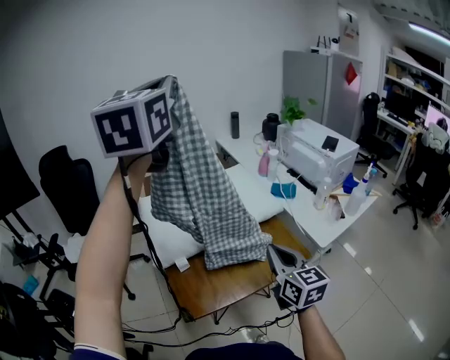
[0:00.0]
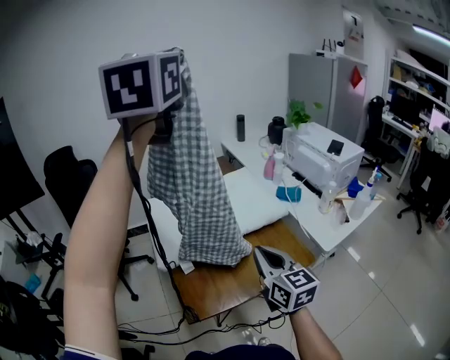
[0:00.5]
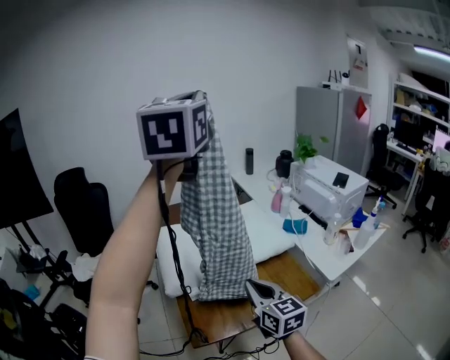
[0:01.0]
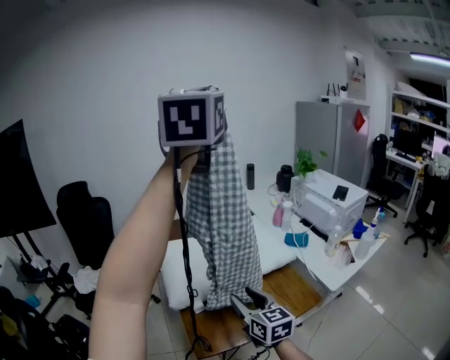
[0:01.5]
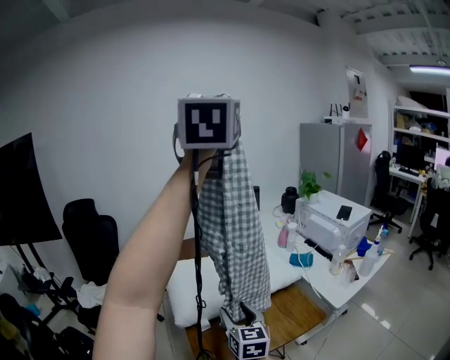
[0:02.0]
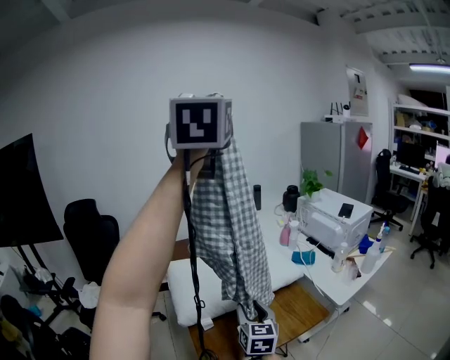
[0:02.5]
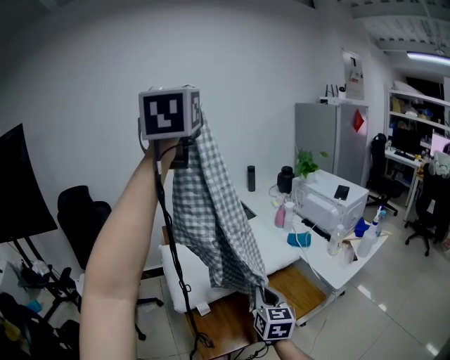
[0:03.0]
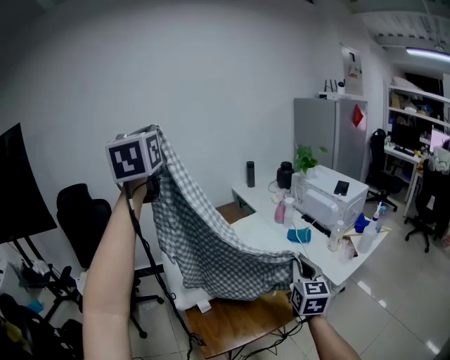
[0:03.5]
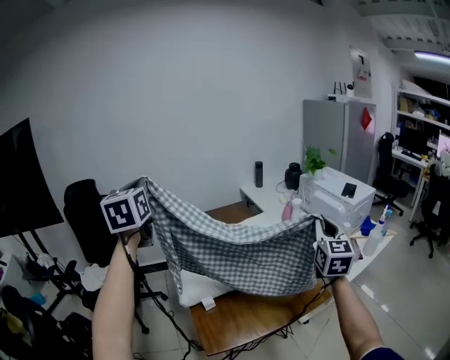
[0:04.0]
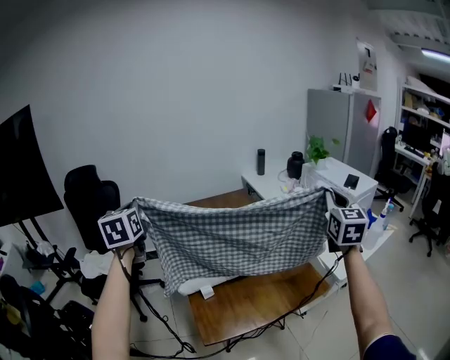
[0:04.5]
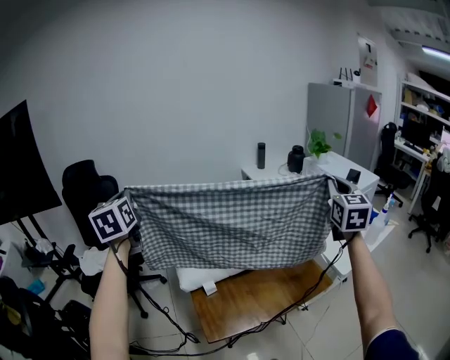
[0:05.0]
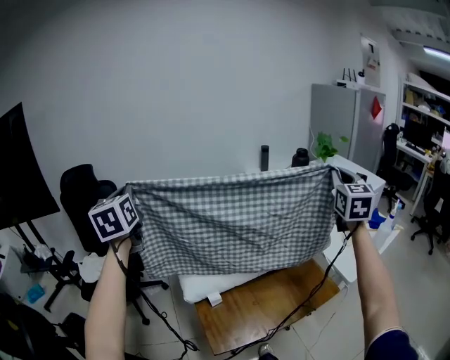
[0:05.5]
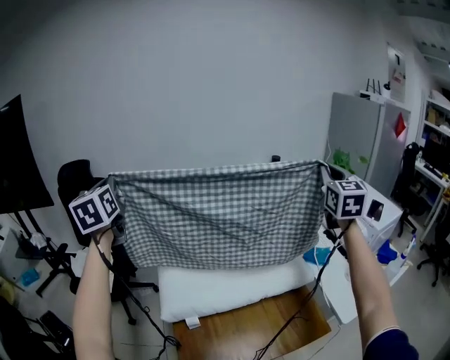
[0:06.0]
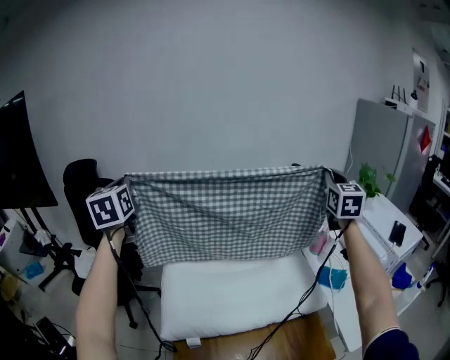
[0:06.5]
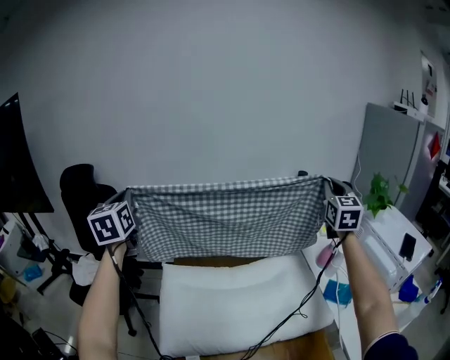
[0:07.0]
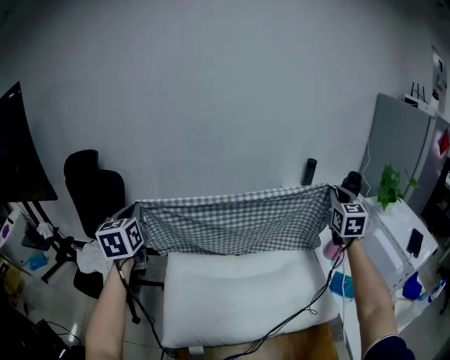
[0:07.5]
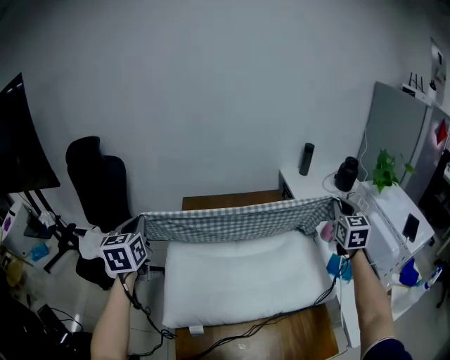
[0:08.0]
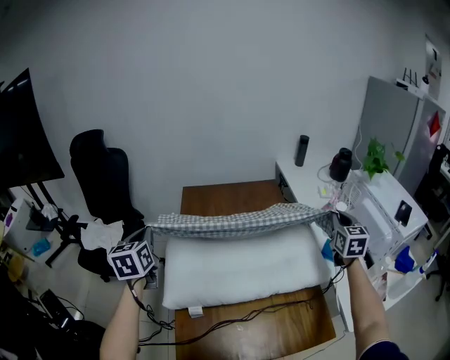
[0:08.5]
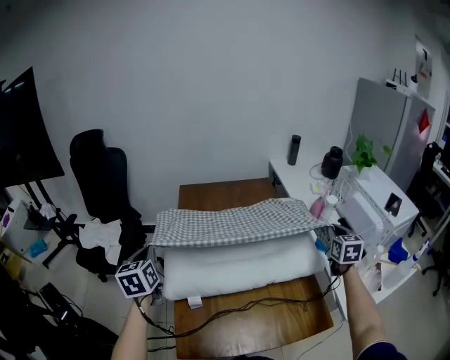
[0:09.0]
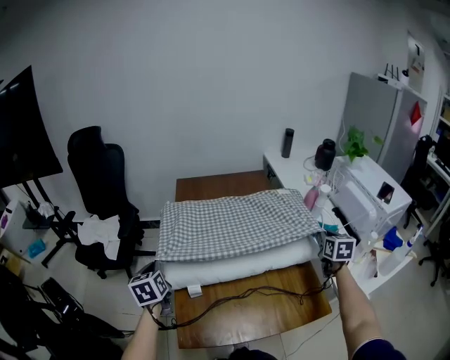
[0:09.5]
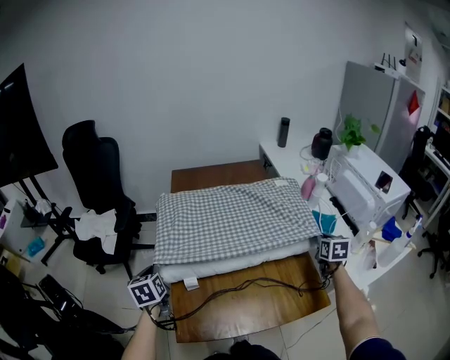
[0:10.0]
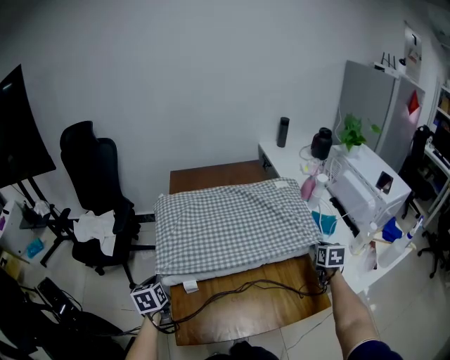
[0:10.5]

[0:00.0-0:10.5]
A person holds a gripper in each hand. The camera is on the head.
0:00.0 to 0:02.0: The left gripper travels upward by about 15 cm. Meanwhile the right gripper shifts about 15 cm to the left, and opens its fingers.
0:02.0 to 0:04.0: The left gripper moves to the left and downward, roughly 40 cm, and changes its angle by about 30 degrees. Meanwhile the right gripper is displaced to the right and upward by roughly 30 cm, changes its angle by about 30 degrees, and closes up.
0:04.0 to 0:06.5: The left gripper travels forward and to the left by approximately 25 cm. The right gripper is displaced forward by about 40 cm.
0:06.5 to 0:08.5: The grippers both shift downward and backward by some 25 cm.
0:08.5 to 0:10.5: The two grippers go some 25 cm downward and backward. The left gripper changes its angle by roughly 20 degrees. Meanwhile the right gripper swivels some 30 degrees.

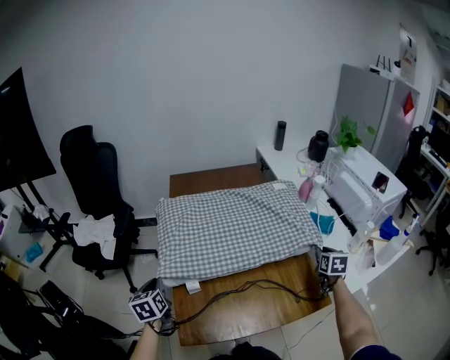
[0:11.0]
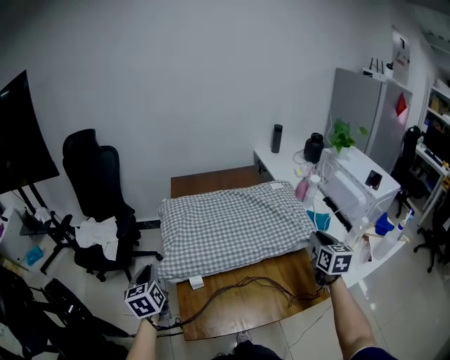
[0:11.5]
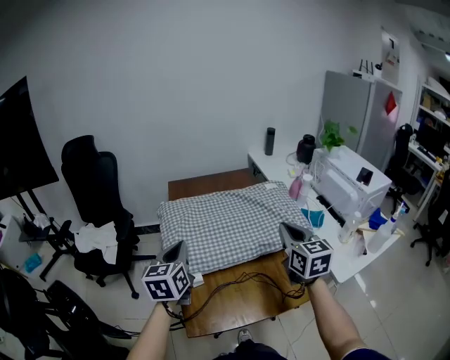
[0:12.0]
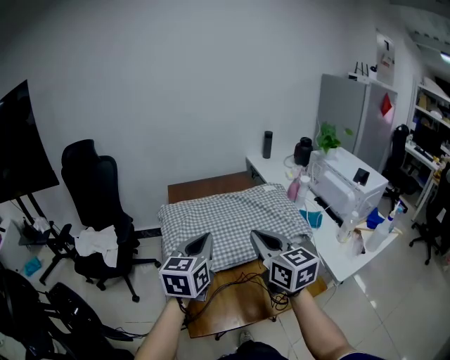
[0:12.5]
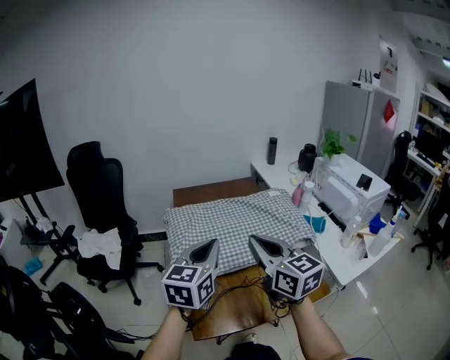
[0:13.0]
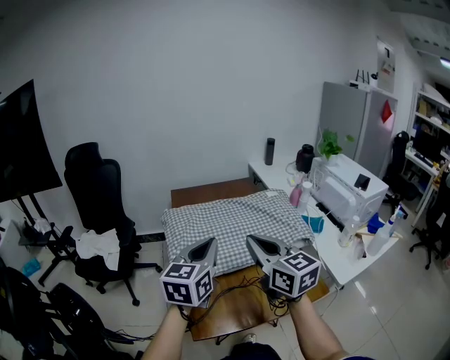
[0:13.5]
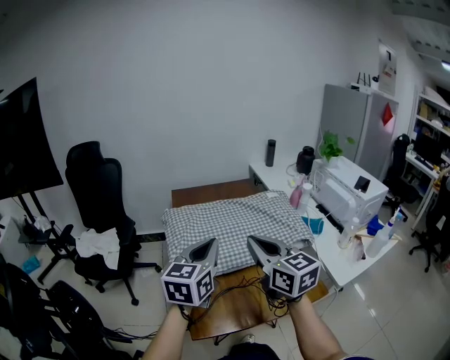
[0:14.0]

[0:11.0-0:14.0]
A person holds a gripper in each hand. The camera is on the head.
0:11.0 to 0:12.5: The right gripper moves to the left and upward, some 40 cm, points its fingers about 30 degrees further upward, and closes its fingers. The left gripper travels upward and to the right by roughly 30 cm, and changes its angle by approximately 40 degrees.
0:12.5 to 0:14.0: There are only small adjustments of the grippers.

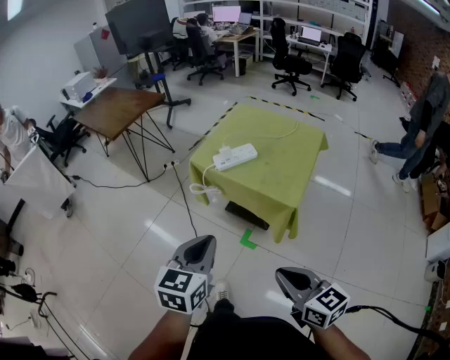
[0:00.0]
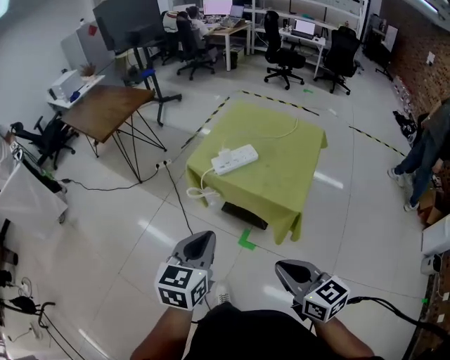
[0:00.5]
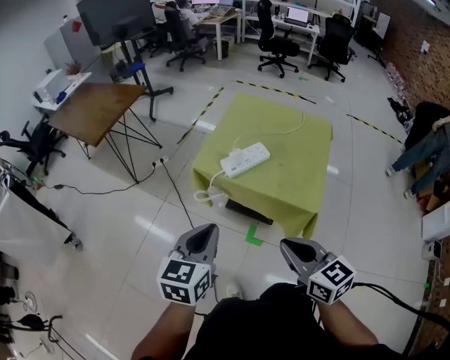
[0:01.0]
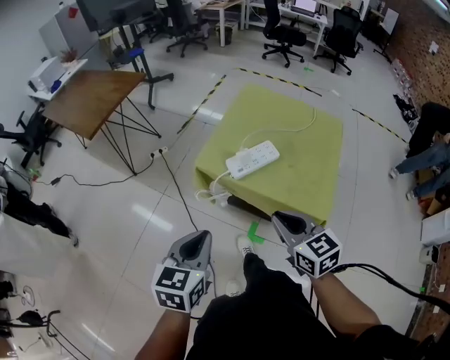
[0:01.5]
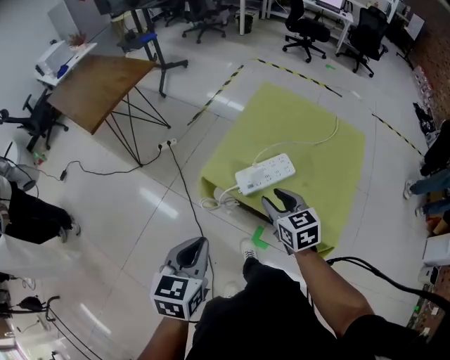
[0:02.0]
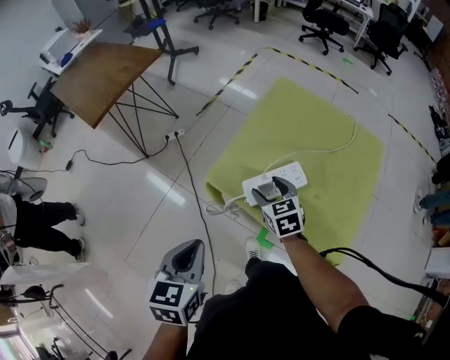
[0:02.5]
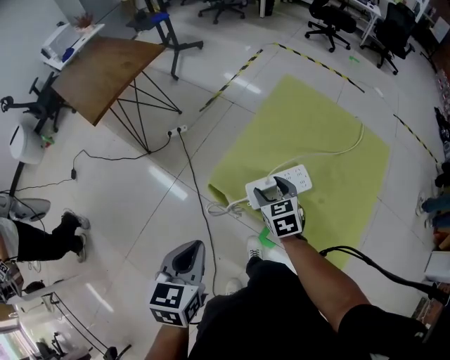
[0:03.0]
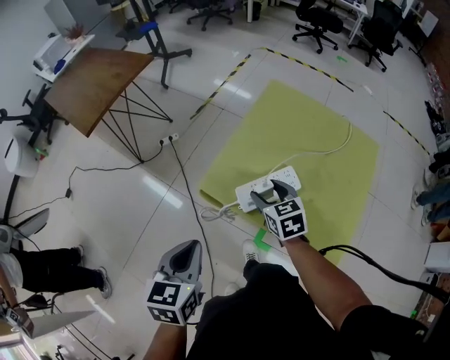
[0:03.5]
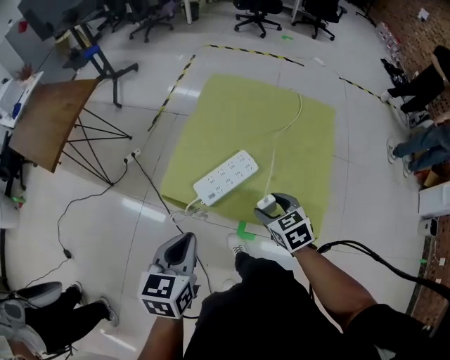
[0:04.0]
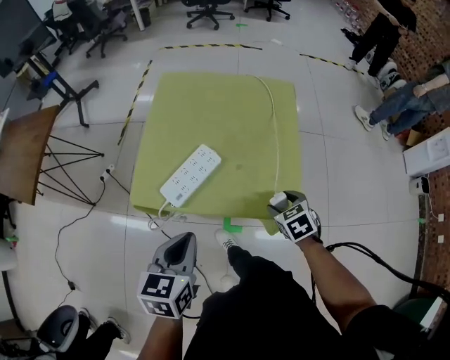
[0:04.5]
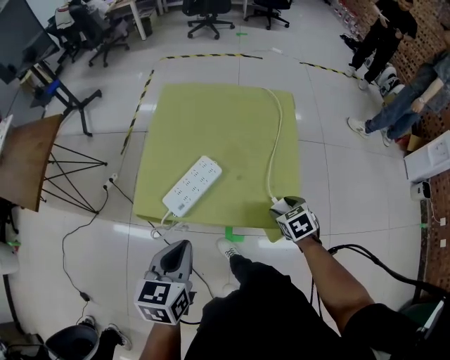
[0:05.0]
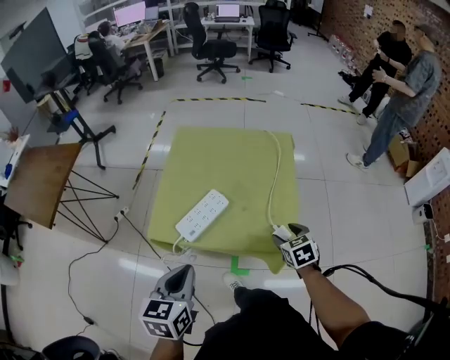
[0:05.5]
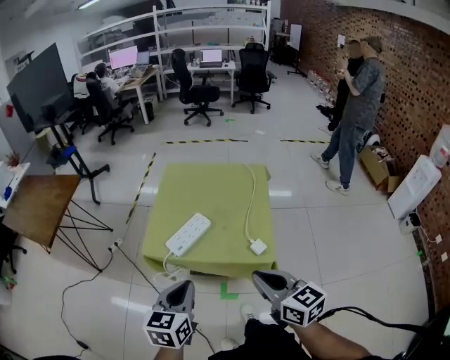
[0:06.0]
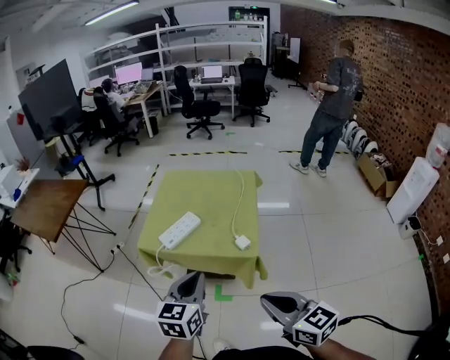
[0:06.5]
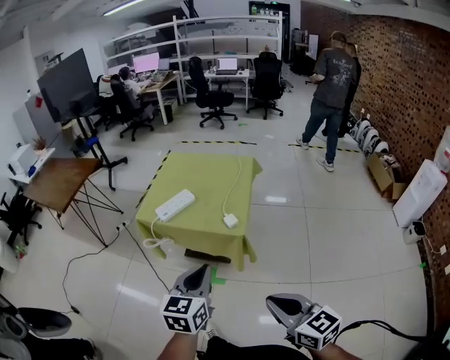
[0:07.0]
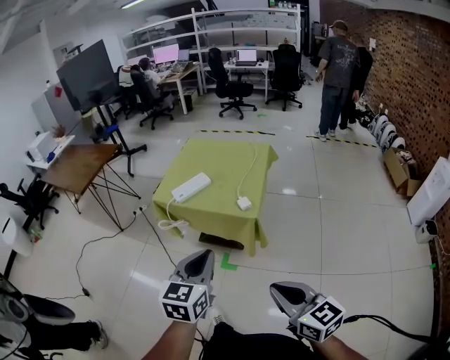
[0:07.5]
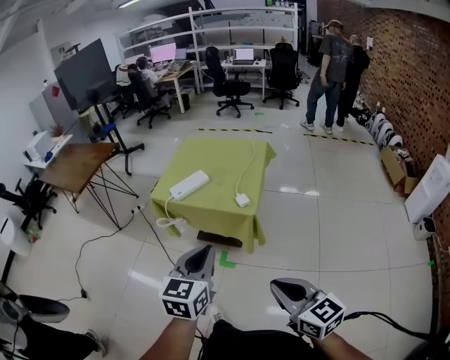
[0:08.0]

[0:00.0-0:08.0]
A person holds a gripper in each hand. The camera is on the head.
0:00.0 to 0:02.0: The left gripper travels forward and to the left by approximately 30 cm, while the right gripper heads forward, covering some 50 cm, and opens up.
0:02.0 to 0:04.0: The right gripper travels to the right and downward by about 10 cm, and opens; the left gripper heads forward and to the right, covering some 10 cm.
0:04.0 to 0:06.0: The right gripper moves upward and backward, some 30 cm, angles its fingers upward, by about 30 degrees, and closes its fingers. Meanwhile the left gripper moves to the right, backward and upward, some 15 cm.
0:06.0 to 0:08.0: The left gripper heads backward and to the right, covering some 30 cm; the right gripper goes roughly 30 cm backward.

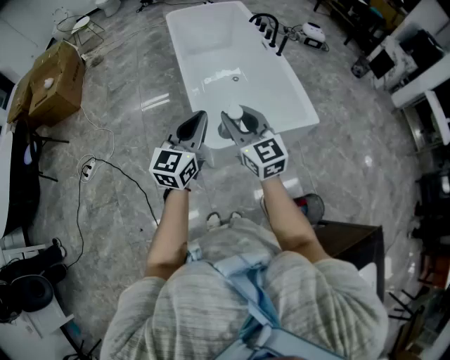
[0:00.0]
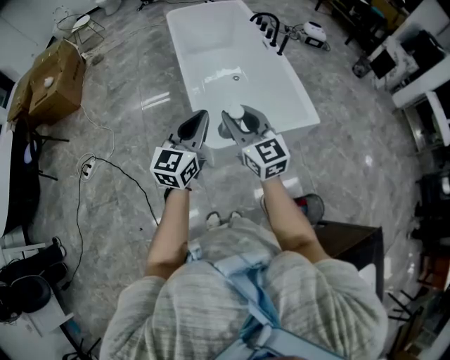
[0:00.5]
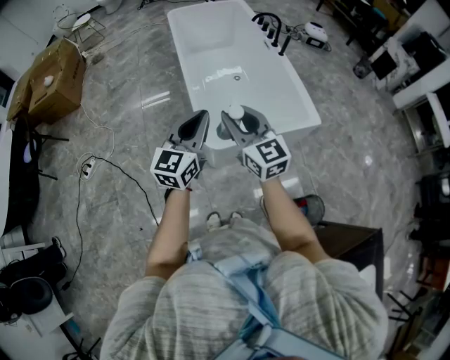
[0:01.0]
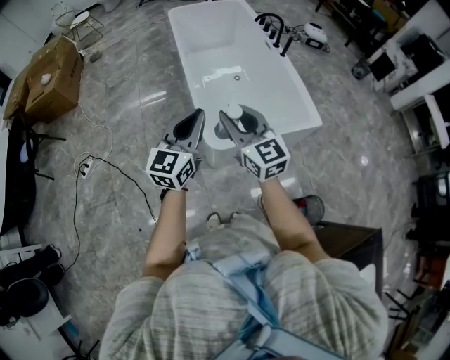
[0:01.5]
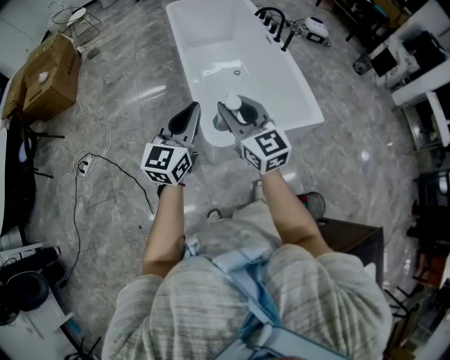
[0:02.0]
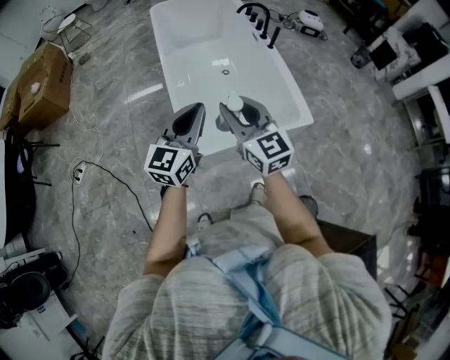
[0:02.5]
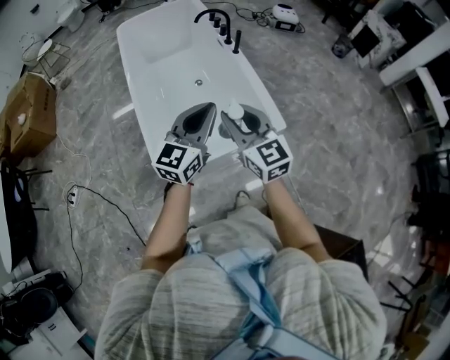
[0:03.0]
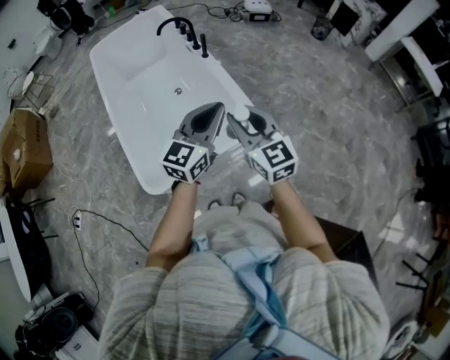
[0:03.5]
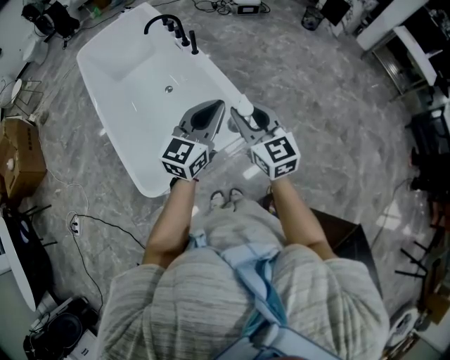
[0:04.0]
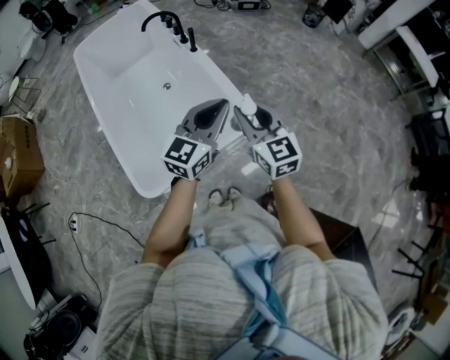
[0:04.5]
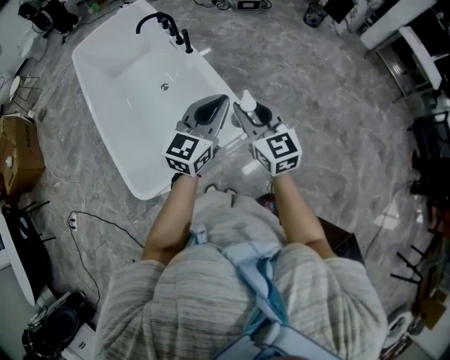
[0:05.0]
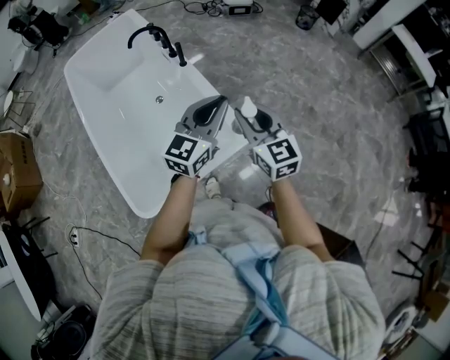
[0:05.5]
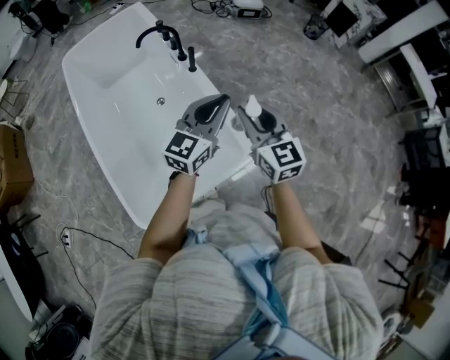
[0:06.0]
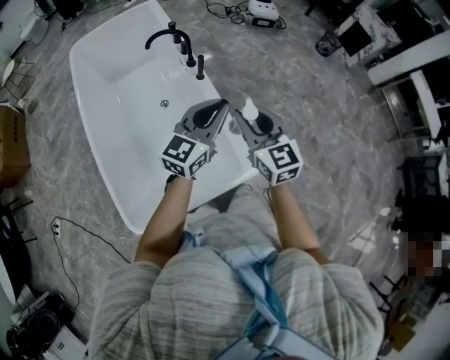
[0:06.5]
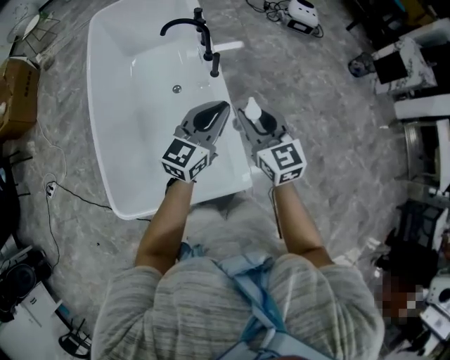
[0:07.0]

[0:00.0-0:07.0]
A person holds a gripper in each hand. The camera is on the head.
0:00.0 to 0:02.0: The right gripper moves roughly 5 cm. The left gripper moves roughly 5 cm.
0:02.0 to 0:03.5: The two grippers travel together, to the right, roughly 50 cm. The left gripper changes its angle by roughly 20 degrees.
0:03.5 to 0:05.0: Both grippers move to the right and forward, roughly 10 cm.
0:05.0 to 0:07.0: The grippers both shift forward by some 30 cm.
